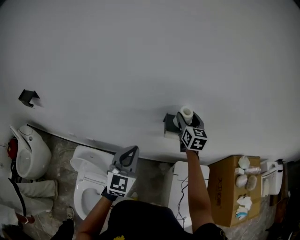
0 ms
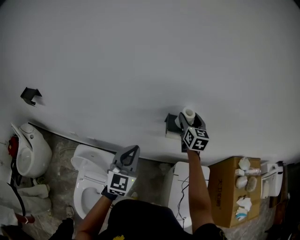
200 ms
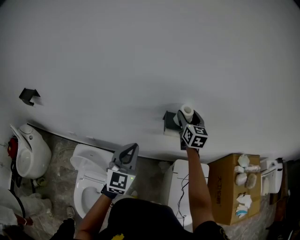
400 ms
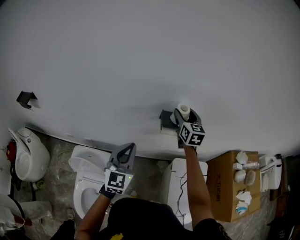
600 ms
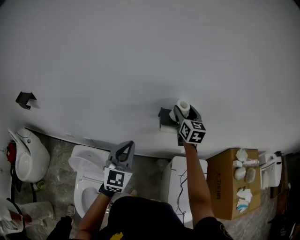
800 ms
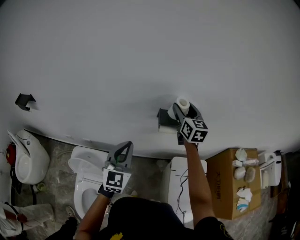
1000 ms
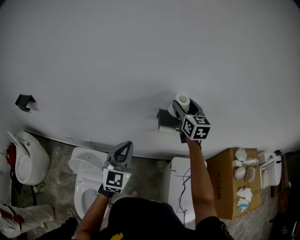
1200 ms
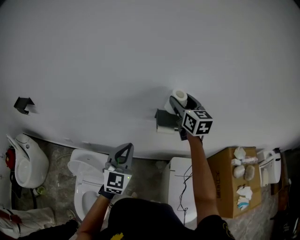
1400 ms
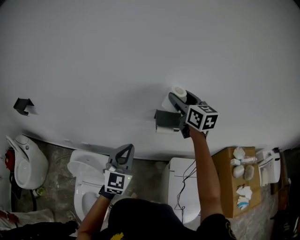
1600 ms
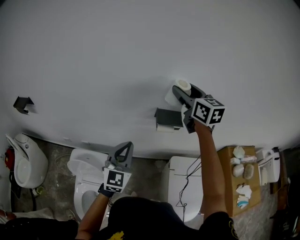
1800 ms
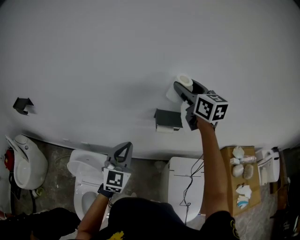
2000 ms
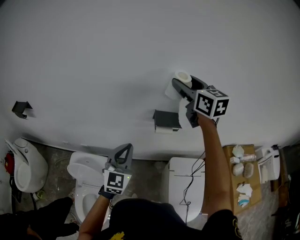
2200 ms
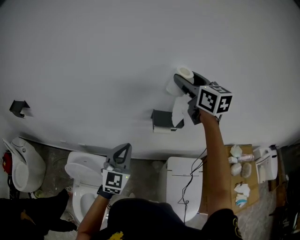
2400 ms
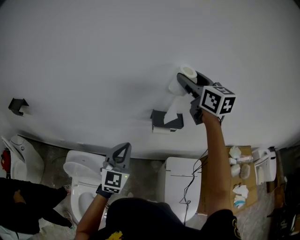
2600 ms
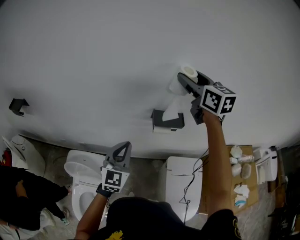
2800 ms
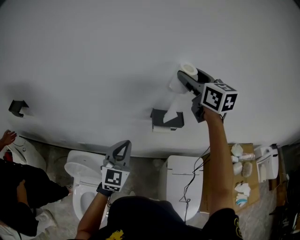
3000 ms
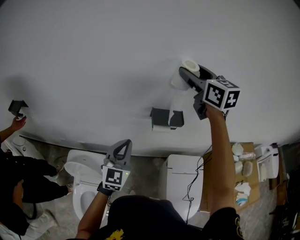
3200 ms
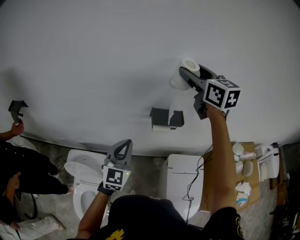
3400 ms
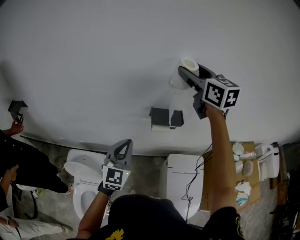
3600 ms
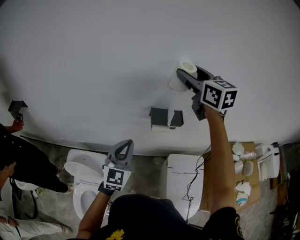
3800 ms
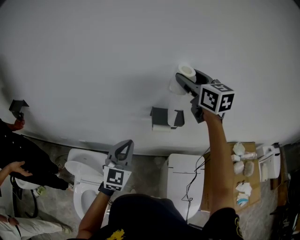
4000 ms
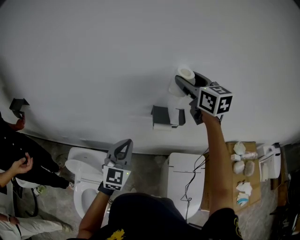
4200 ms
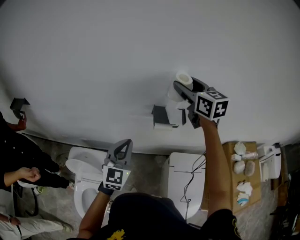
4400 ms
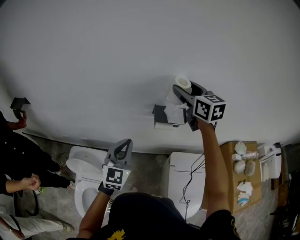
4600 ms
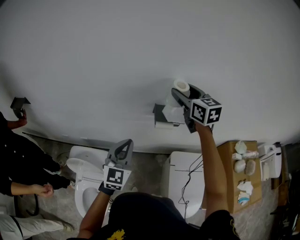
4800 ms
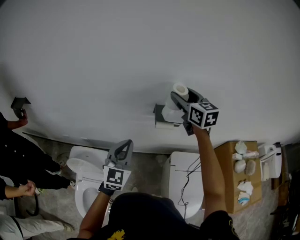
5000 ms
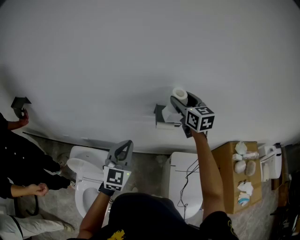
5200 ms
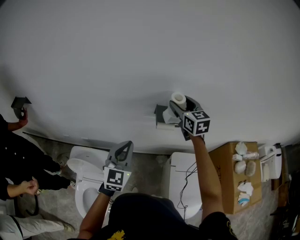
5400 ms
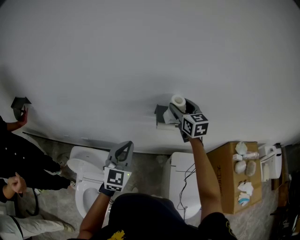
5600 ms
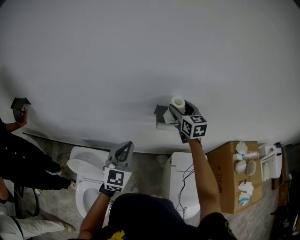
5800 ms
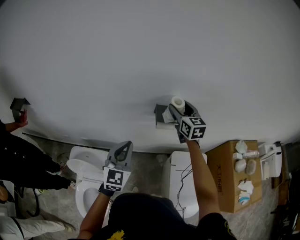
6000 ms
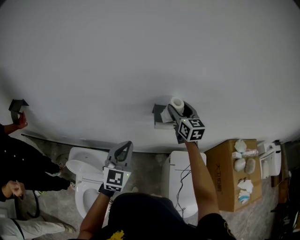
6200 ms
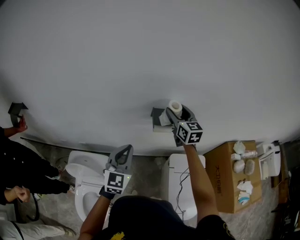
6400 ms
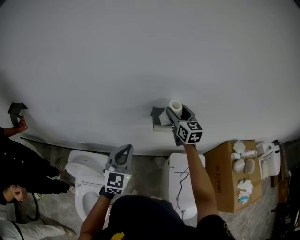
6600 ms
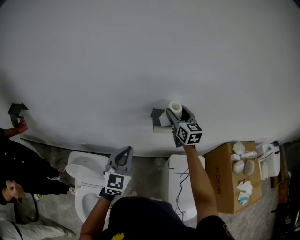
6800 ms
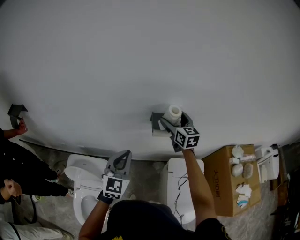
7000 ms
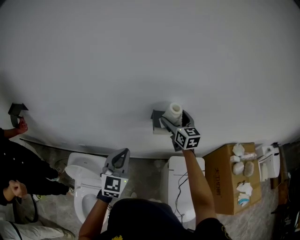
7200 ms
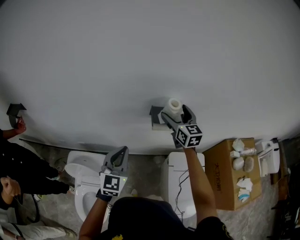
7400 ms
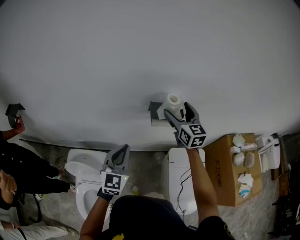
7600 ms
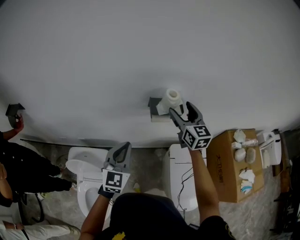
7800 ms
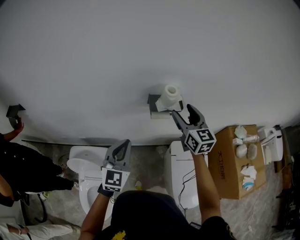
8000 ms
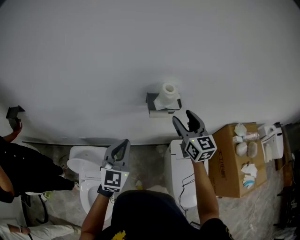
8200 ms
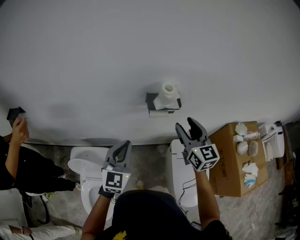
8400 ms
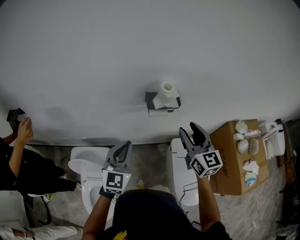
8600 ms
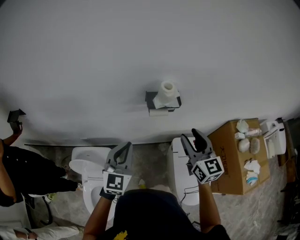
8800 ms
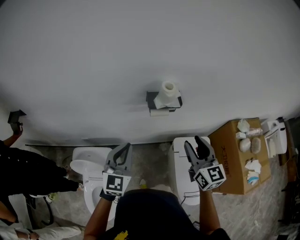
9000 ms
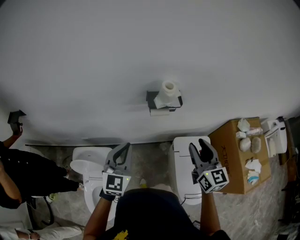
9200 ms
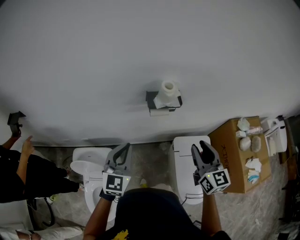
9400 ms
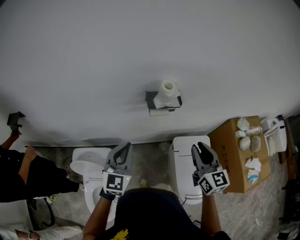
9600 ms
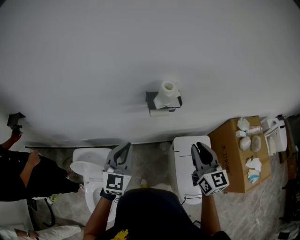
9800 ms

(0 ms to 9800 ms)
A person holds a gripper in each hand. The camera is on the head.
0 ms - 1400 ms: The right gripper goes roughly 10 cm upward.
1400 ms - 2800 ms: The right gripper travels upward by approximately 10 cm.
2800 ms - 4200 ms: The grippers move only a little.
4200 ms - 5600 ms: The right gripper moves downward, roughly 15 cm.
5600 ms - 7000 ms: The grippers stay close to where they were, moving slightly.
7000 ms - 8400 ms: The right gripper shifts some 15 cm backward, and closes up.
8400 ms - 9800 ms: The right gripper travels backward by roughly 10 cm.

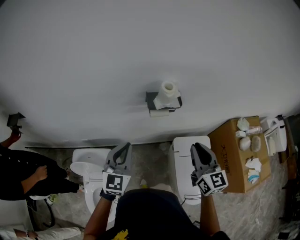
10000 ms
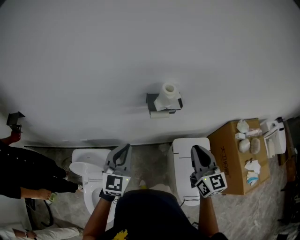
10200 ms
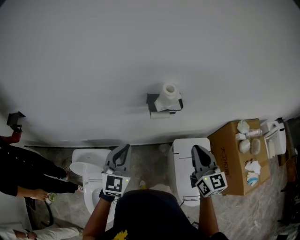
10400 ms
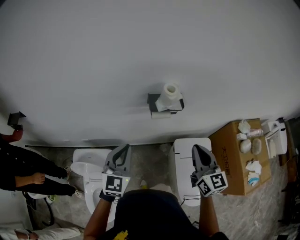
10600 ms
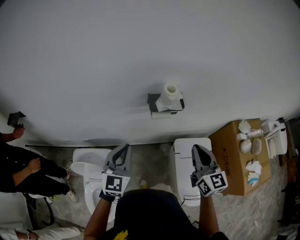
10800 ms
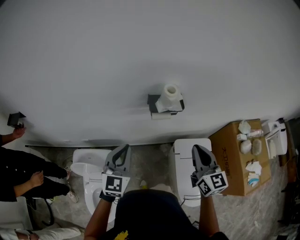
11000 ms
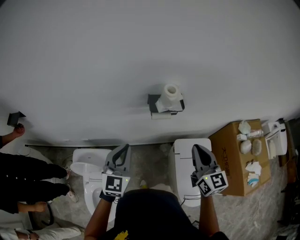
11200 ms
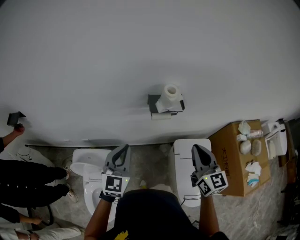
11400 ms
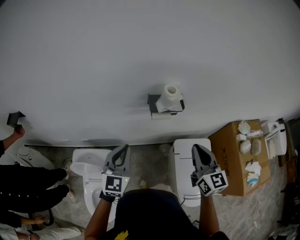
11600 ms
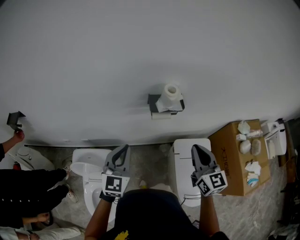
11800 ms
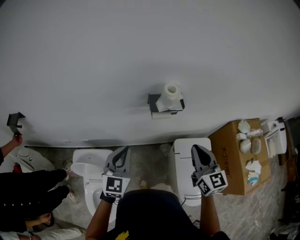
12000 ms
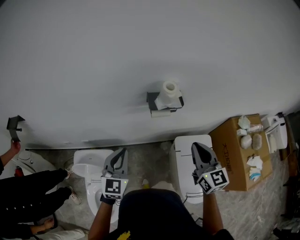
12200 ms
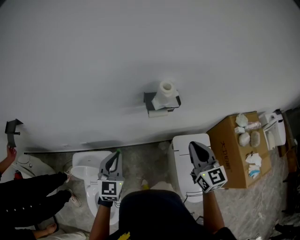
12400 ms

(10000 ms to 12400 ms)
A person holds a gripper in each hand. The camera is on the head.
10000 ms - 11200 ms: The grippers stay close to where they were, moving slightly.
11200 ms - 12400 ms: The left gripper moves roughly 5 cm.

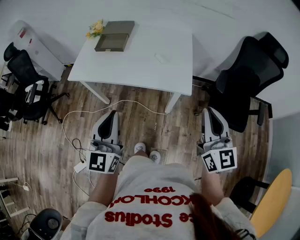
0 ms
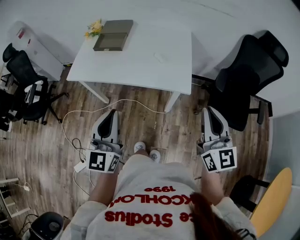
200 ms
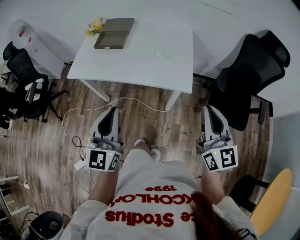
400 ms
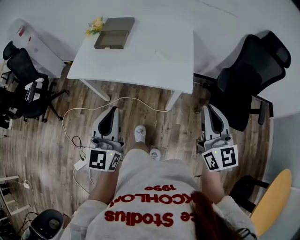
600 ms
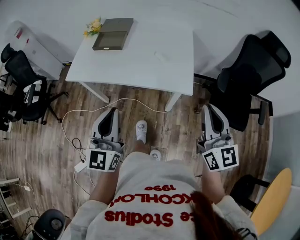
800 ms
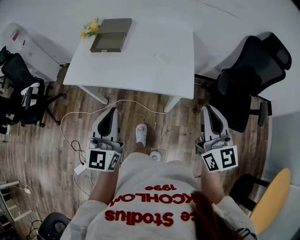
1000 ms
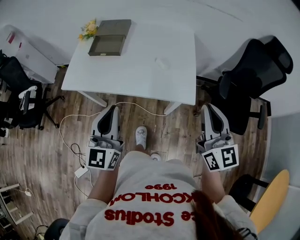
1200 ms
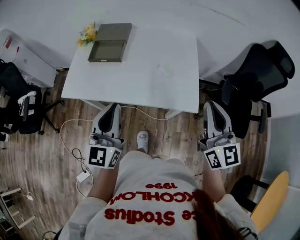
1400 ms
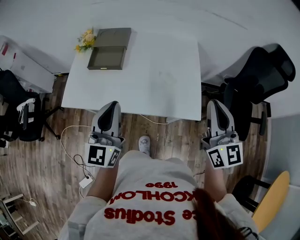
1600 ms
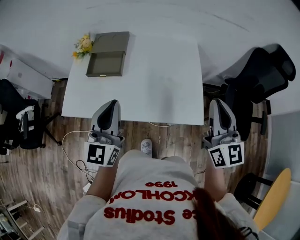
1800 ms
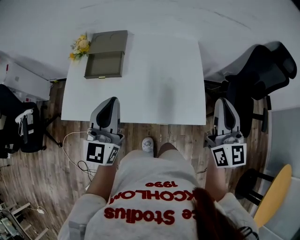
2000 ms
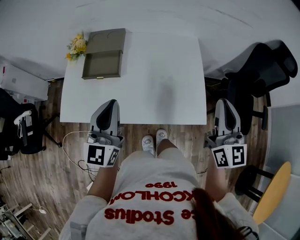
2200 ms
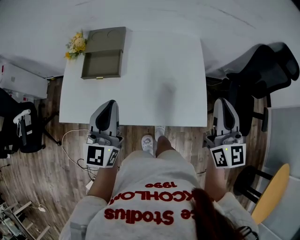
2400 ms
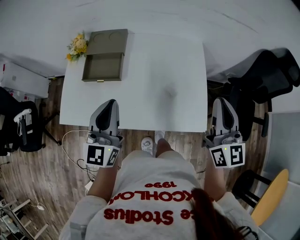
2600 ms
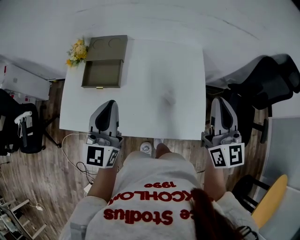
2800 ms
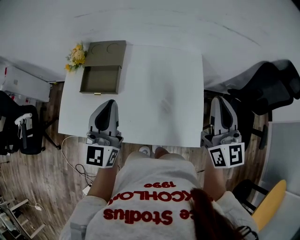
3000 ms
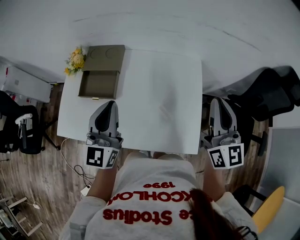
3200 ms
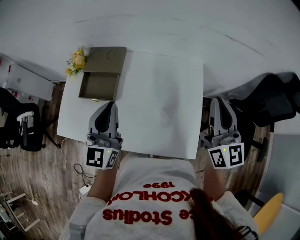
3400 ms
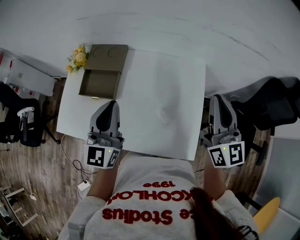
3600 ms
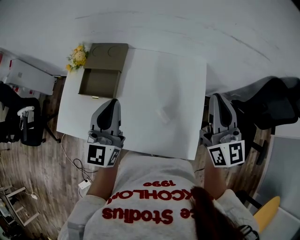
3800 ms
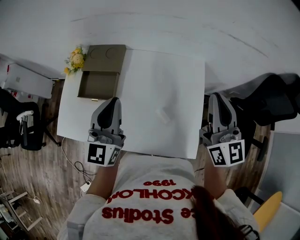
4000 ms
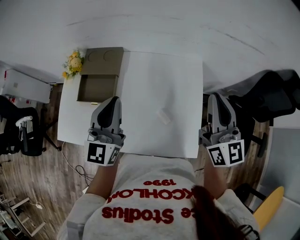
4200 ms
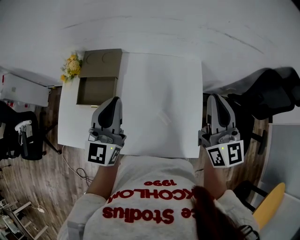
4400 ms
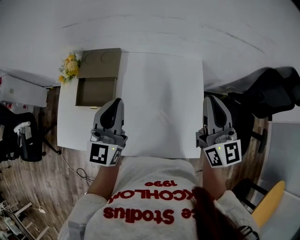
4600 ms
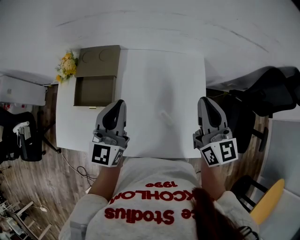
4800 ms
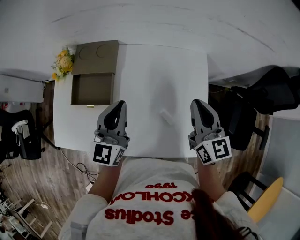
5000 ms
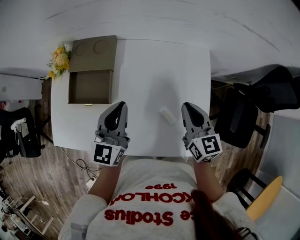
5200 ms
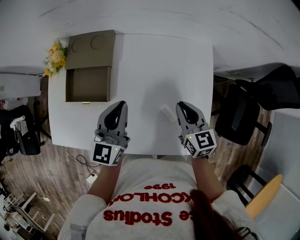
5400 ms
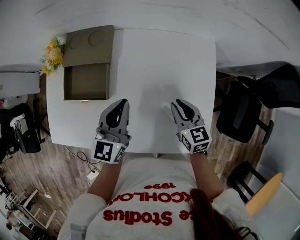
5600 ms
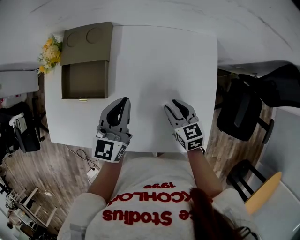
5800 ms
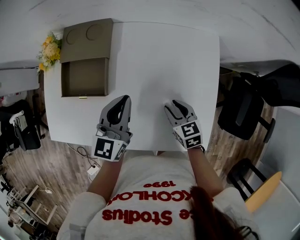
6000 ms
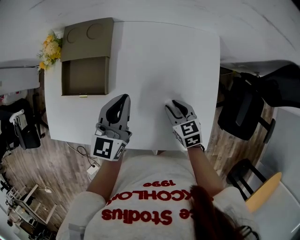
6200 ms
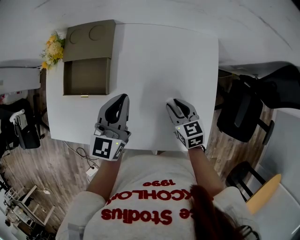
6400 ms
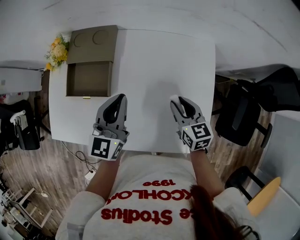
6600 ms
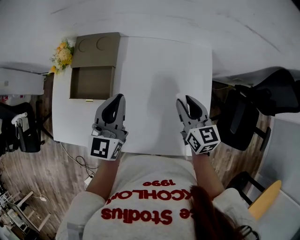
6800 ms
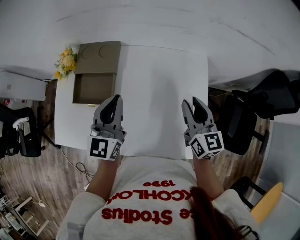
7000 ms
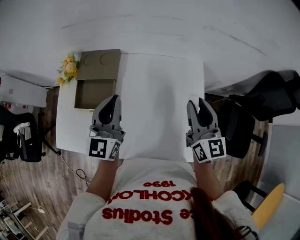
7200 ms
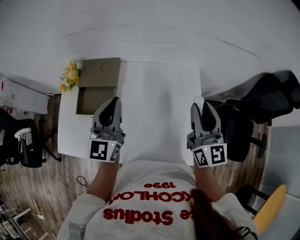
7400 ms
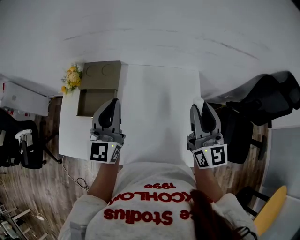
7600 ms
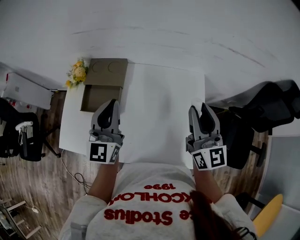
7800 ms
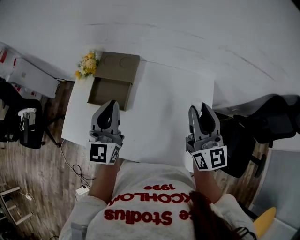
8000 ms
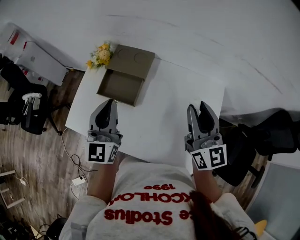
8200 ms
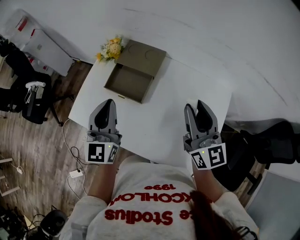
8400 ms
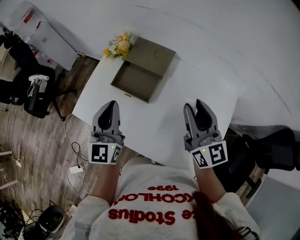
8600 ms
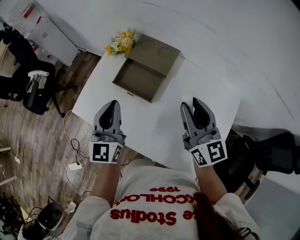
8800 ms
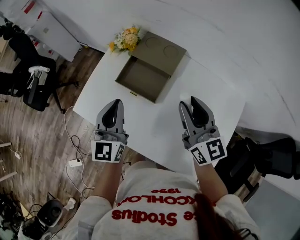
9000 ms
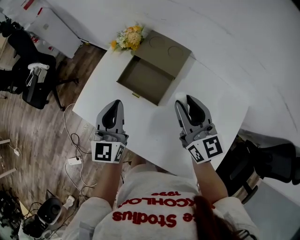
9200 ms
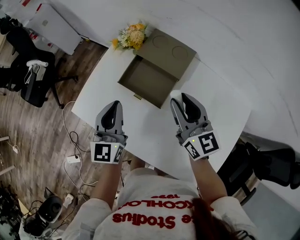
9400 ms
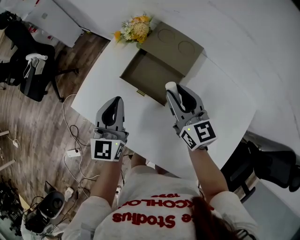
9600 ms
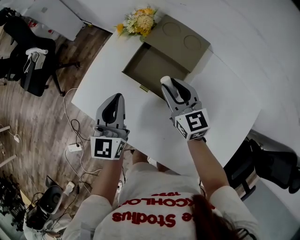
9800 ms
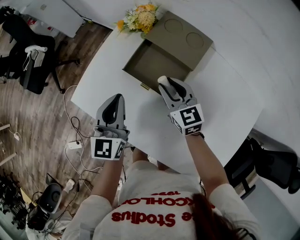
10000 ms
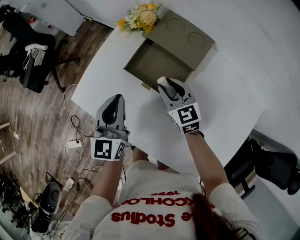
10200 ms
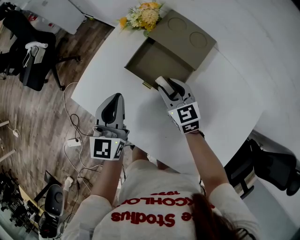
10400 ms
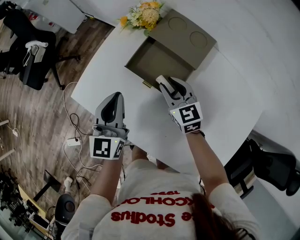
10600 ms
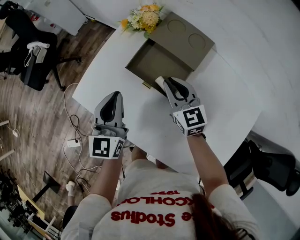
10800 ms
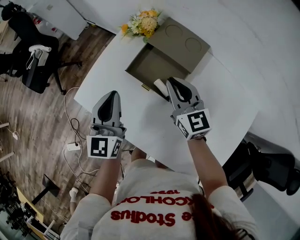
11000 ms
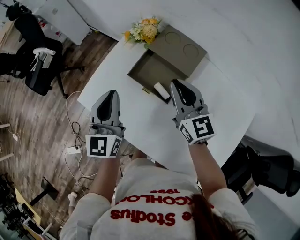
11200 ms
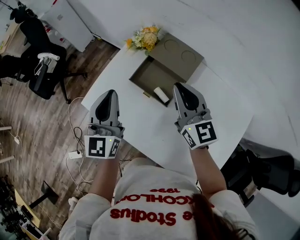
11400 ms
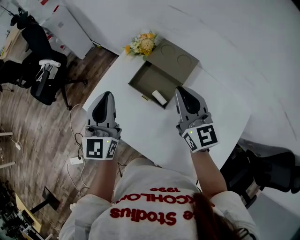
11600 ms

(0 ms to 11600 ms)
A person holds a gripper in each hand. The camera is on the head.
0 ms - 1400 ms: The two grippers go about 15 cm forward.
1400 ms - 2800 ms: Both grippers travel together forward, some 20 cm.
2800 ms - 4400 ms: The two grippers go roughly 10 cm forward.
4400 ms - 5800 ms: The left gripper shifts roughly 15 cm downward; the right gripper shifts about 30 cm downward, tilts its fingers roughly 40 degrees downward, and opens its fingers.
5800 ms - 7200 ms: The right gripper heads upward, covering some 20 cm, and points its fingers roughly 40 degrees further upward, while the left gripper shifts approximately 10 cm upward.
7200 ms - 8800 ms: The right gripper ends up some 20 cm from where it was, and changes its angle by some 30 degrees. Meanwhile the left gripper moves roughly 20 cm, and turns by about 30 degrees.
8800 ms - 10200 ms: The left gripper heads downward and to the left, covering about 10 cm; the right gripper is displaced downward, to the left and forward by about 30 cm, and swivels roughly 30 degrees.
10200 ms - 11600 ms: The left gripper is displaced upward by some 15 cm, while the right gripper is displaced upward by approximately 20 cm, turns by approximately 30 degrees, and closes its fingers.
